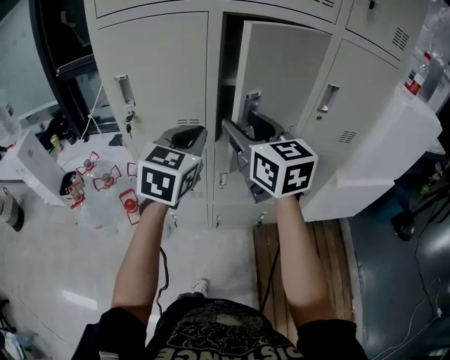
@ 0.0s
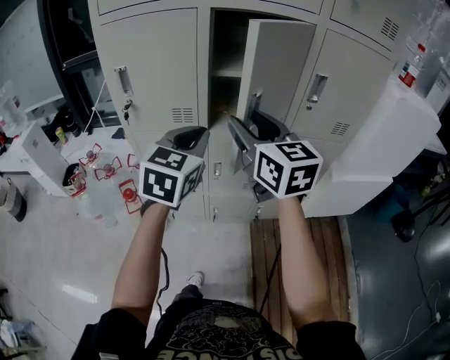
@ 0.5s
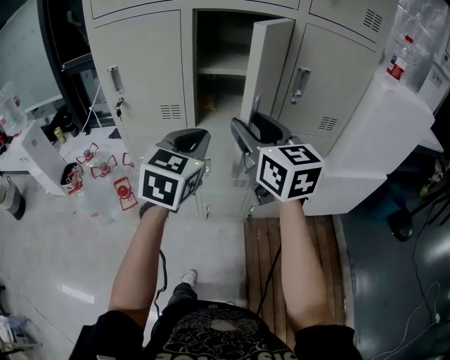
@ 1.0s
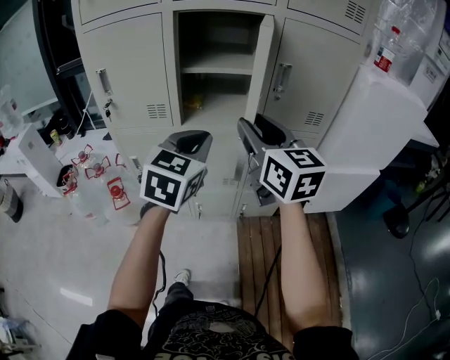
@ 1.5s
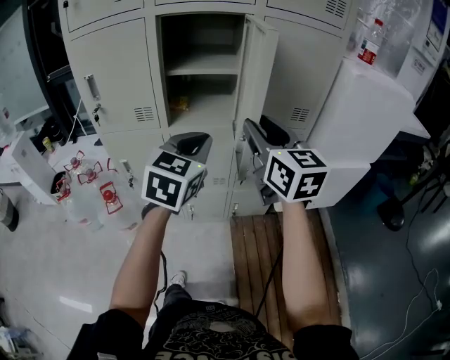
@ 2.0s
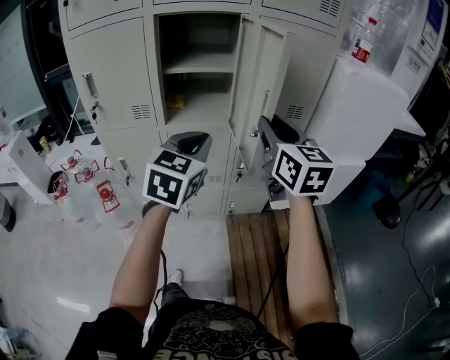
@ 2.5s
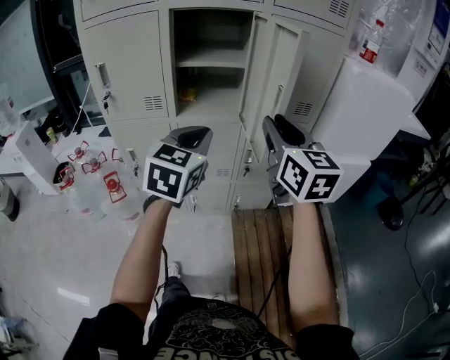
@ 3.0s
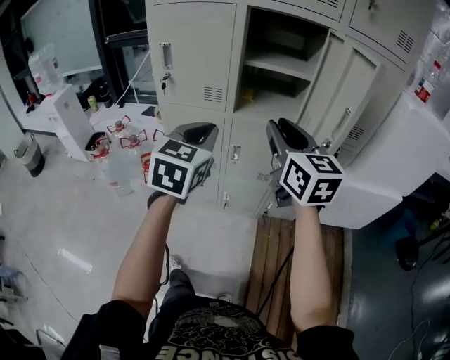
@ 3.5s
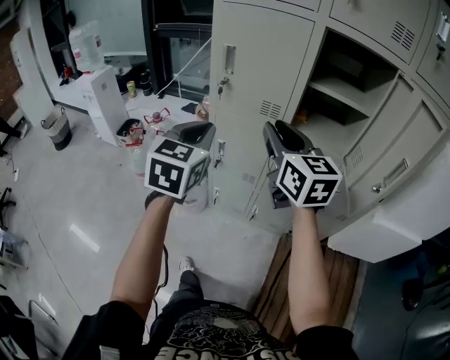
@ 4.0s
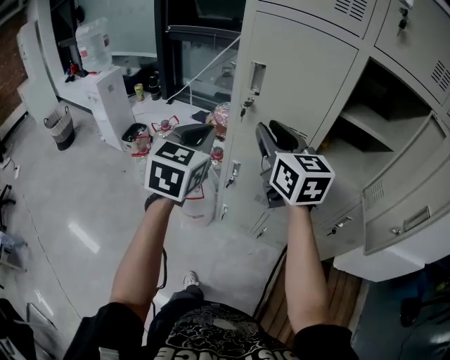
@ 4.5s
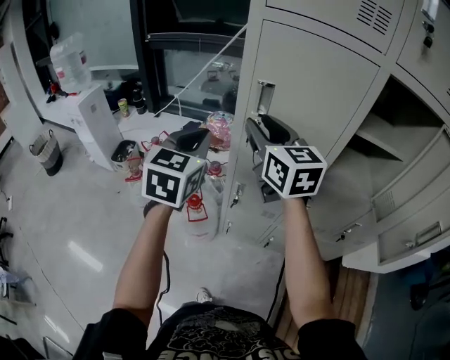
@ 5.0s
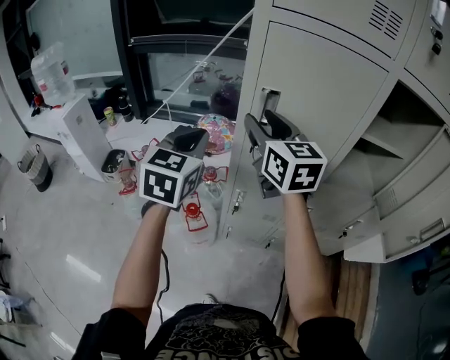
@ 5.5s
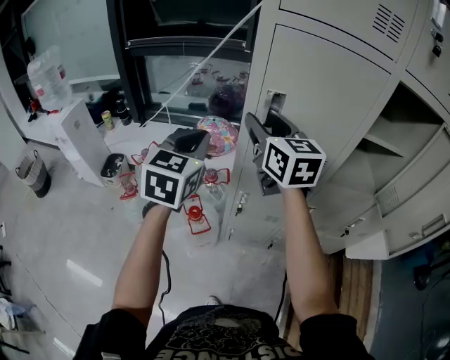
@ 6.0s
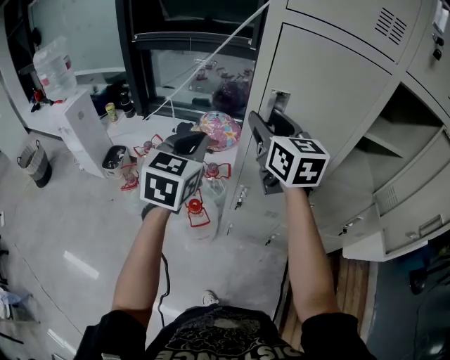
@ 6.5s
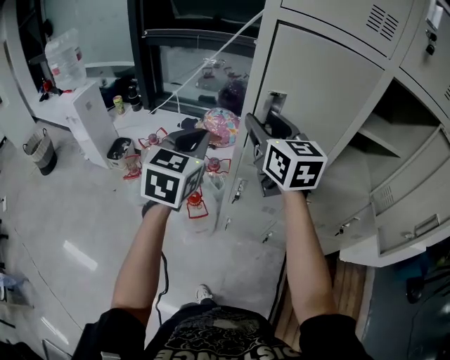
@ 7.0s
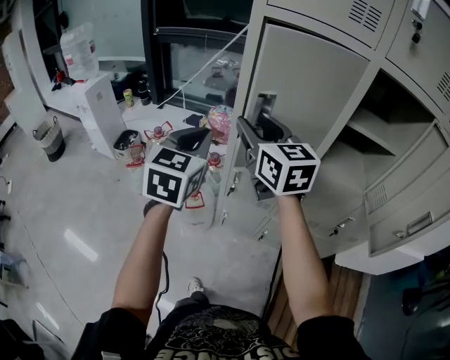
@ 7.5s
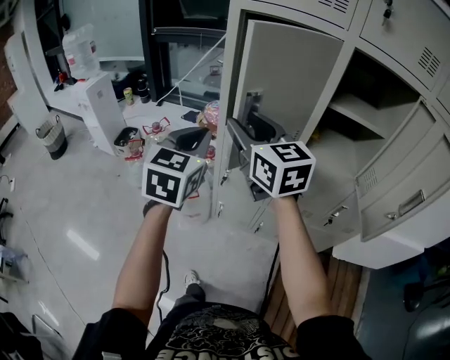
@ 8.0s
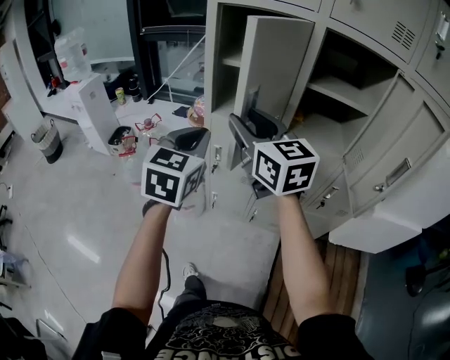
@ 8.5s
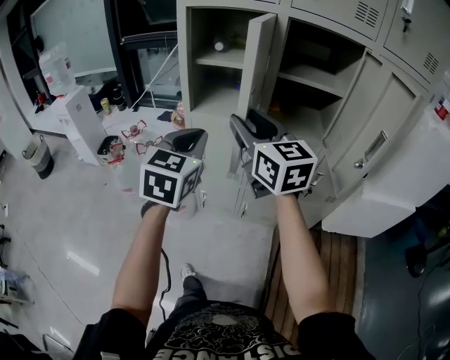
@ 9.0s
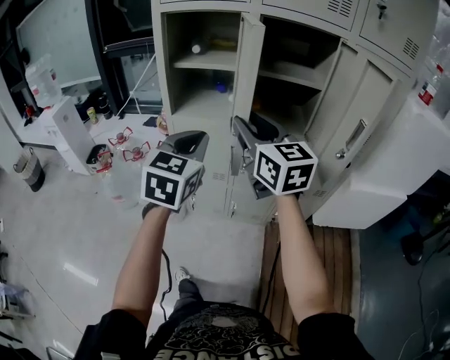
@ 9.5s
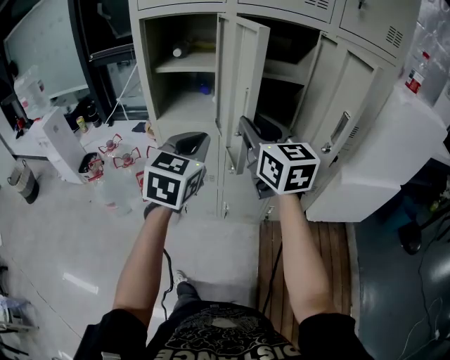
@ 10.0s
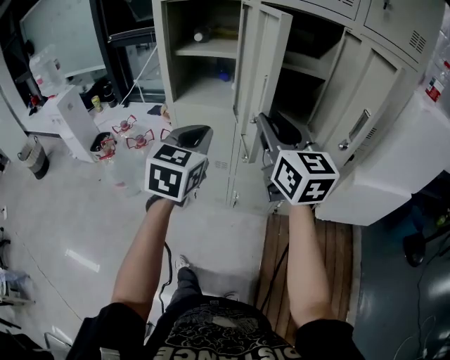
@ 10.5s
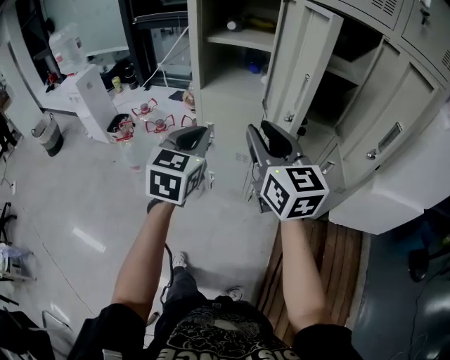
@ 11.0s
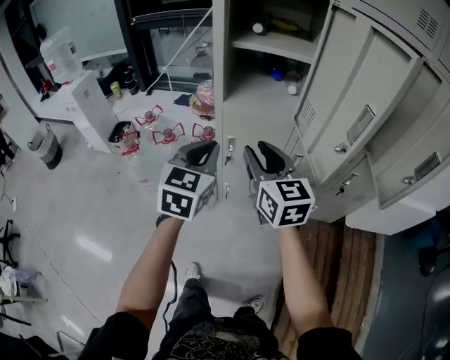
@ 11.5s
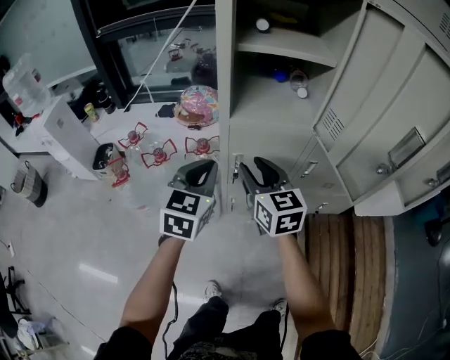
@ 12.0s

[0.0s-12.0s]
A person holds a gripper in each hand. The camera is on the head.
0.0s to 2.0s: The grippers both shift to the right and backward by about 20 cm.
2.0s to 4.0s: The left gripper shifts by about 30 cm, and swivels approximately 30 degrees. Meanwhile the right gripper ends up about 30 cm from where it was, and turns by some 20 degrees.
4.0s to 6.0s: Both grippers travel together forward and to the left, approximately 30 cm. The right gripper opens.
6.0s to 8.0s: The right gripper moves backward, roughly 20 cm. The left gripper is displaced backward and to the right by some 20 cm.
8.0s to 10.0s: The two grippers go approximately 25 cm to the right and backward. The right gripper changes its angle by roughly 20 degrees.
10.0s to 12.0s: The grippers both shift to the left, downward and forward by some 35 cm.

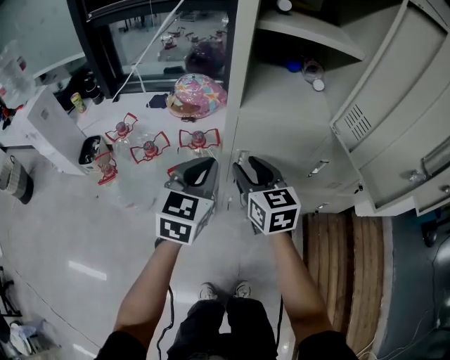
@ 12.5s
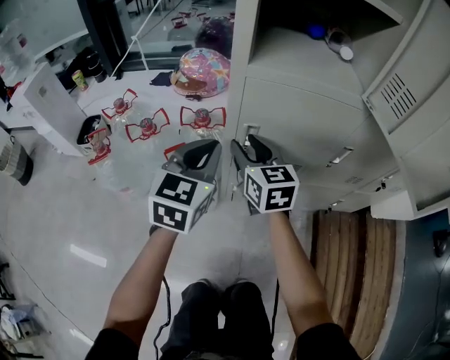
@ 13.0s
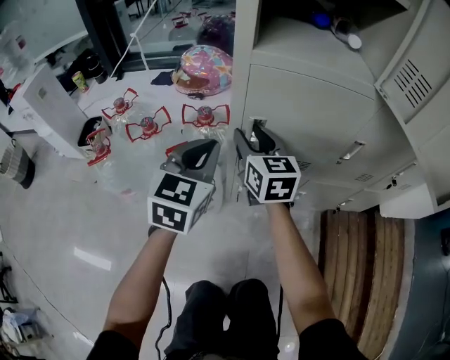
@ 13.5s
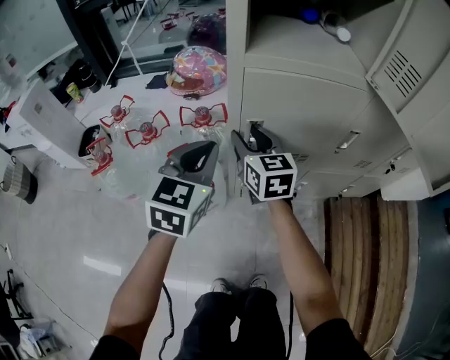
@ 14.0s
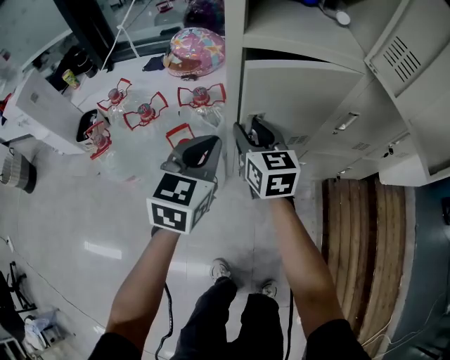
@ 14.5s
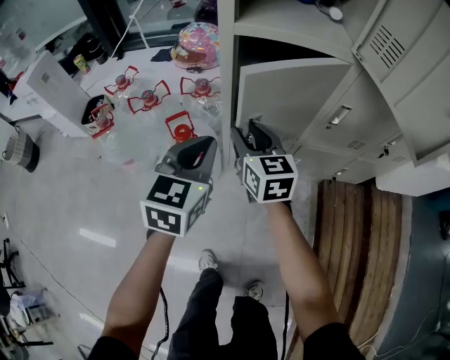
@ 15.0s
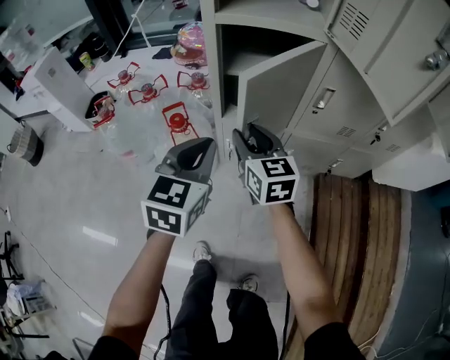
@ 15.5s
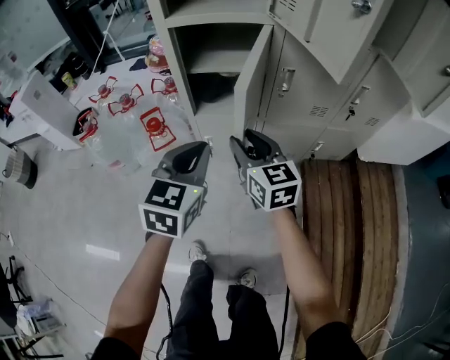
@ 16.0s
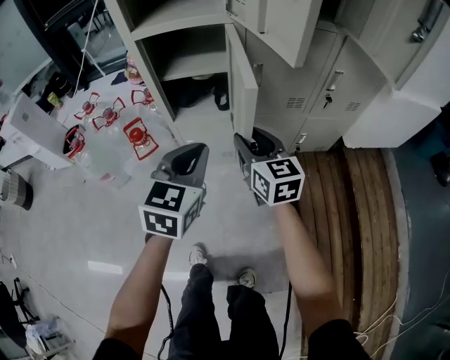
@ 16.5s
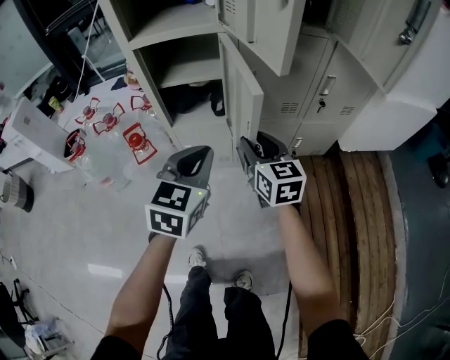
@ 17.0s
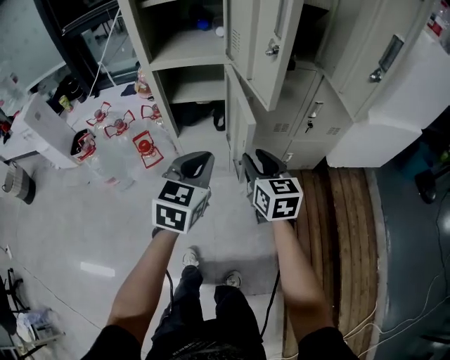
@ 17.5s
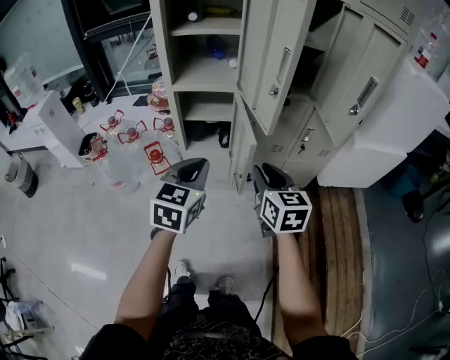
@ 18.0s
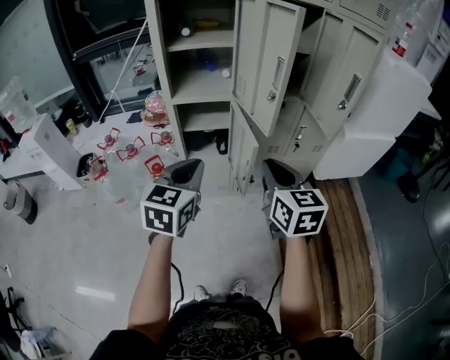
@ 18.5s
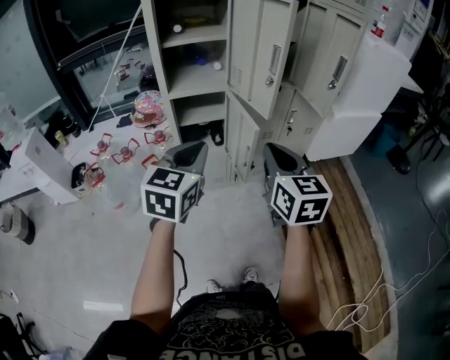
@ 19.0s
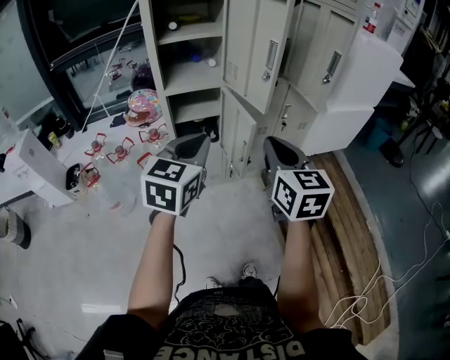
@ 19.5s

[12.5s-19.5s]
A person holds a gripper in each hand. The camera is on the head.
12.5s to 14.5s: Both grippers travel together downward, roughly 10 cm.
14.5s to 16.0s: The two grippers go some 20 cm backward and to the right.
16.0s to 17.5s: The grippers both shift to the right and upward by about 15 cm.
17.5s to 19.5s: The left gripper shifts some 25 cm upward, backward and to the left, while the right gripper goes about 30 cm upward and backward, and closes up.

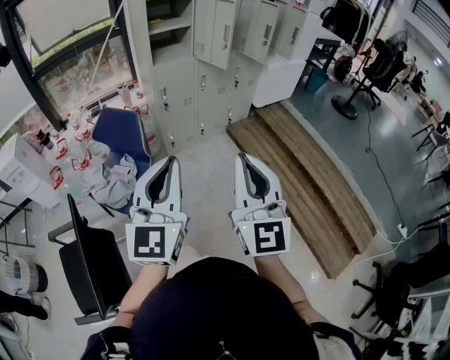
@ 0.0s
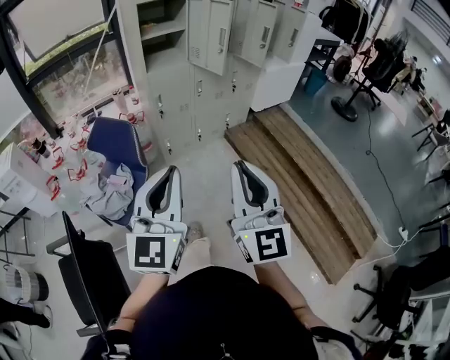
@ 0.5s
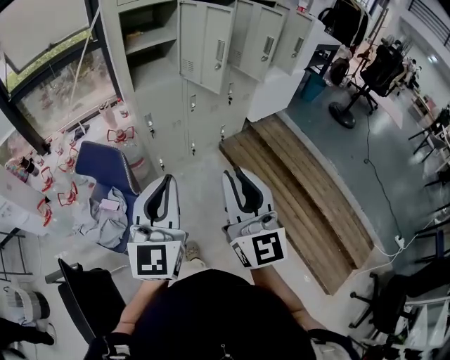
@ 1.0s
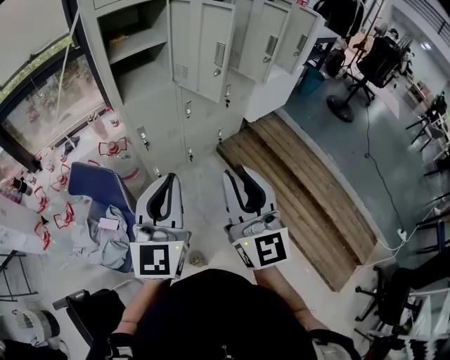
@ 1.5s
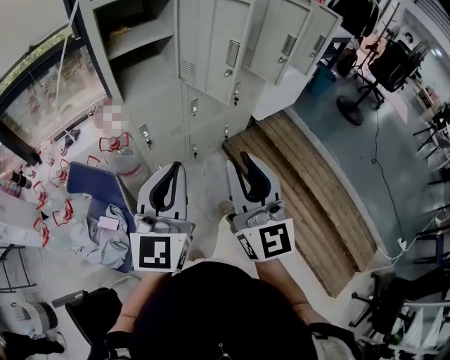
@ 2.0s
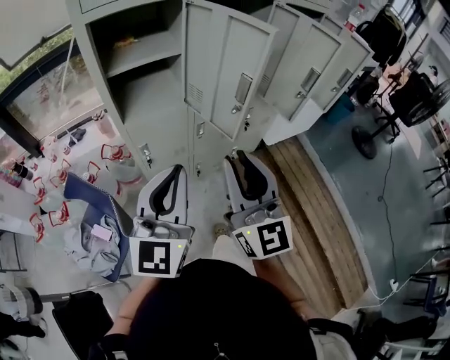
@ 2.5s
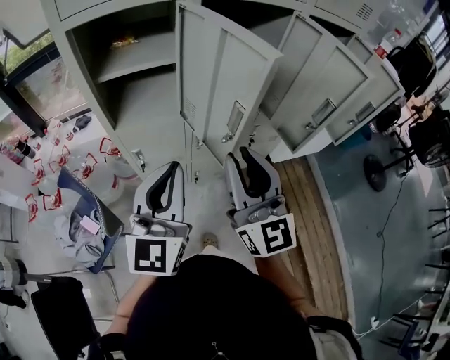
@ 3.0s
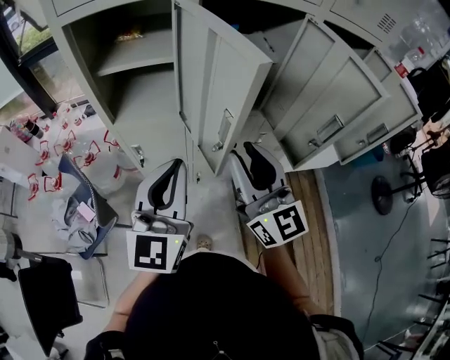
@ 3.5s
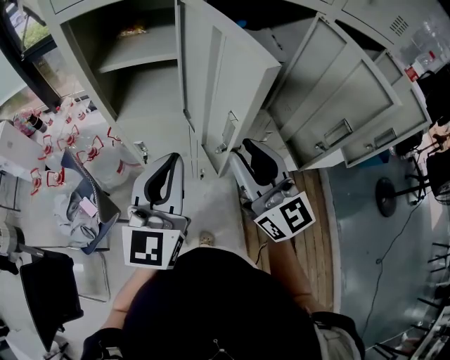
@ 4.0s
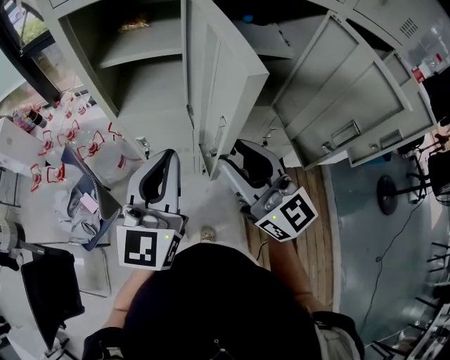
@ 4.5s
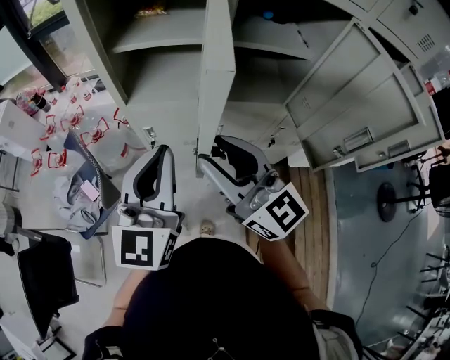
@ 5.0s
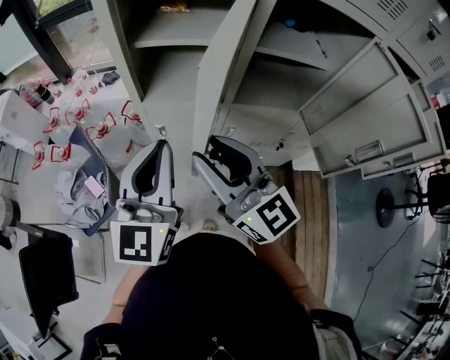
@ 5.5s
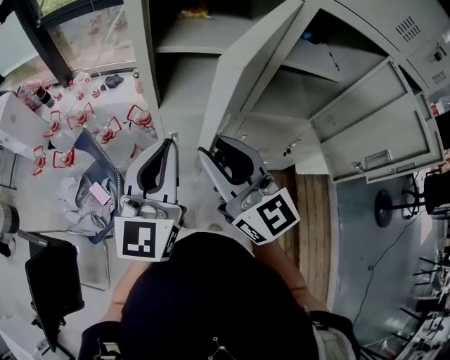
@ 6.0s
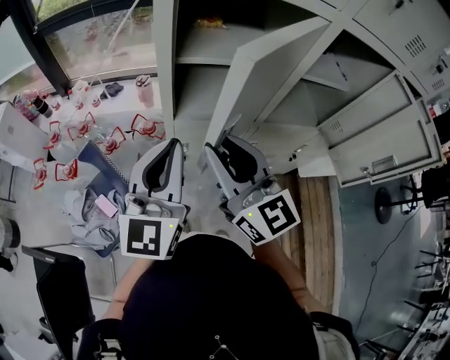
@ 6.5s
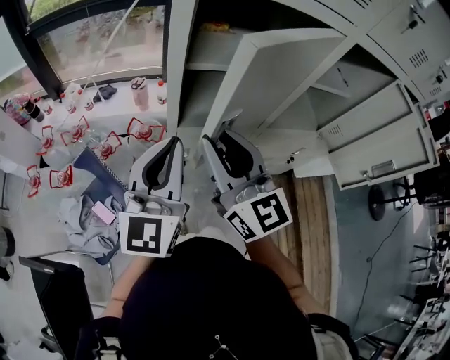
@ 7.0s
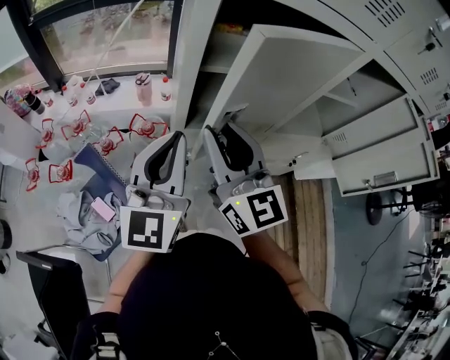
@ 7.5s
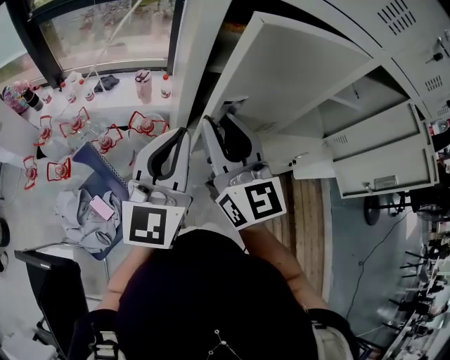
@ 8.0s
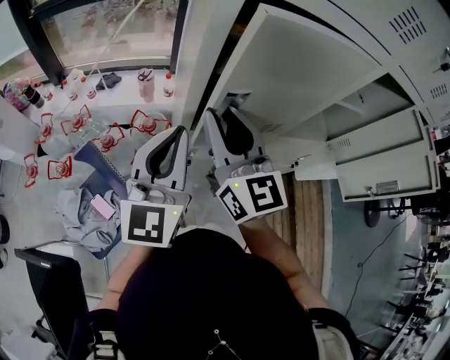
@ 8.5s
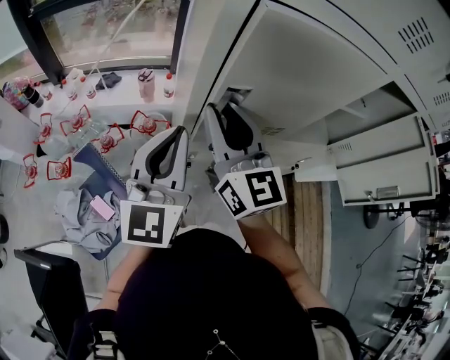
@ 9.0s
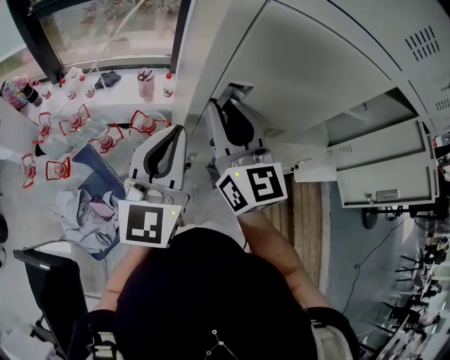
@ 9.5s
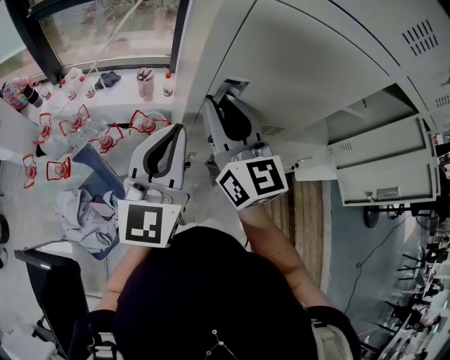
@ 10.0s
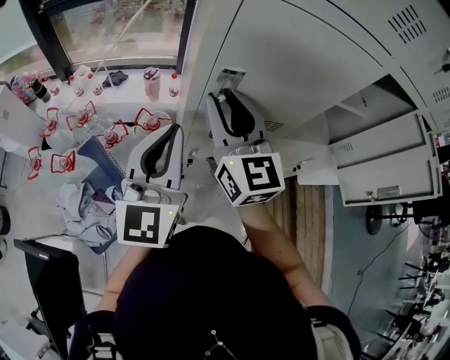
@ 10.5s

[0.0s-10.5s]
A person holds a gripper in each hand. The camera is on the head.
0.0s to 2.0s: Both grippers travel together forward, some 40 cm.
2.0s to 4.0s: The left gripper moves approximately 30 cm, and changes its angle by about 20 degrees. Meanwhile the right gripper ends up approximately 35 cm from where it was, and changes its angle by some 40 degrees.
4.0s to 6.5s: The grippers both shift to the left and forward by approximately 25 cm.
6.5s to 8.5s: The right gripper goes roughly 15 cm forward and to the left, while the left gripper is displaced forward by some 10 cm.
8.5s to 10.5s: The grippers move only a little.
